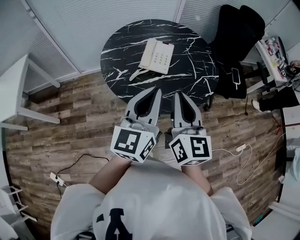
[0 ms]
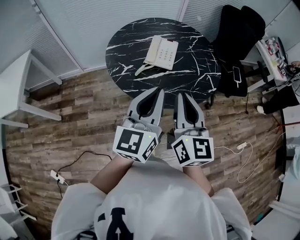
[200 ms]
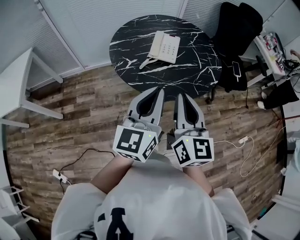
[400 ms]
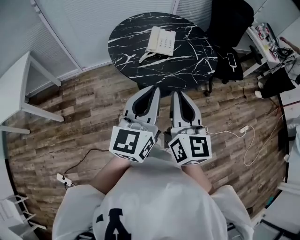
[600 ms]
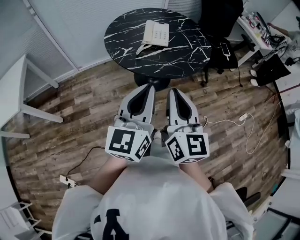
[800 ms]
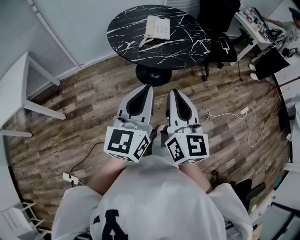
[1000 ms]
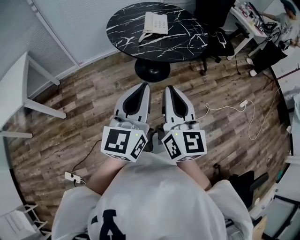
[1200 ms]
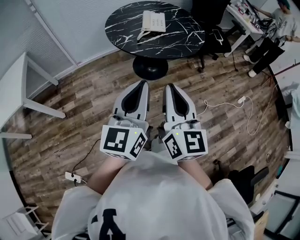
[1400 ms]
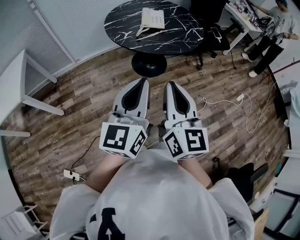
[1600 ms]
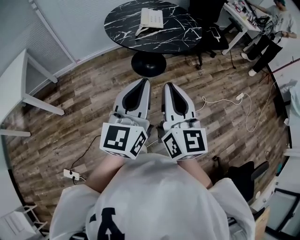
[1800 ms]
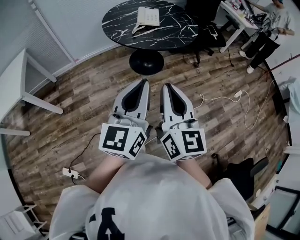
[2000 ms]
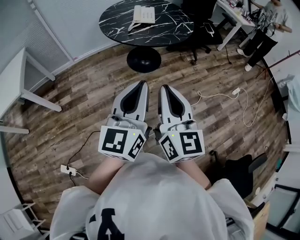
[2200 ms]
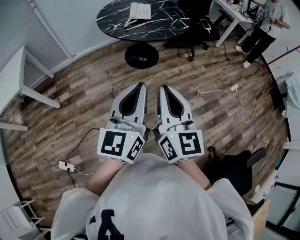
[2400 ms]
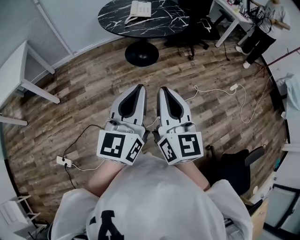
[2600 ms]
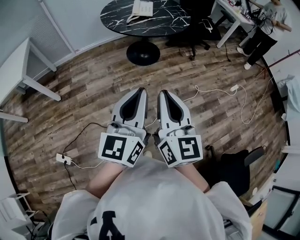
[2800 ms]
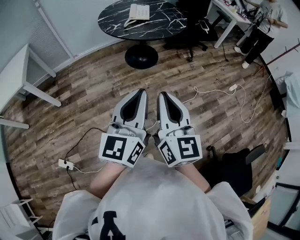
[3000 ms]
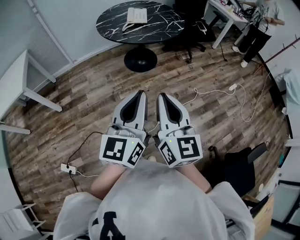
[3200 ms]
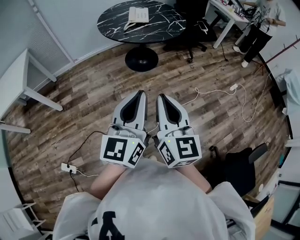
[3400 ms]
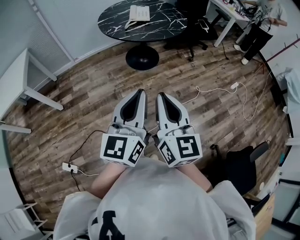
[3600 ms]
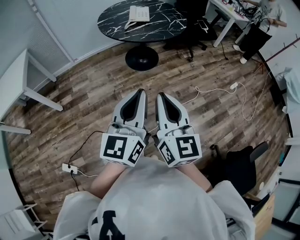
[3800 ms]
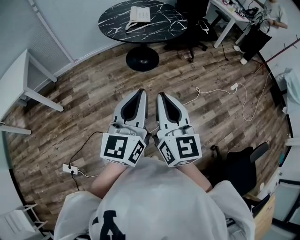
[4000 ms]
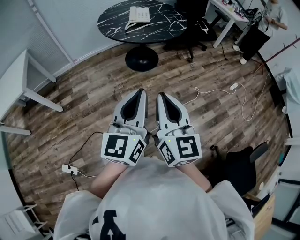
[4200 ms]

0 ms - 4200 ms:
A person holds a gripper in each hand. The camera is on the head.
0 ms - 1400 ms: Both grippers travel together backward, roughly 35 cm.
1400 ms - 2800 ms: Both grippers move backward and to the right, roughly 25 cm.
2800 ms - 4200 ms: The grippers move only a little.

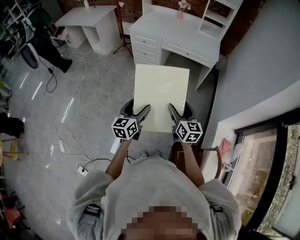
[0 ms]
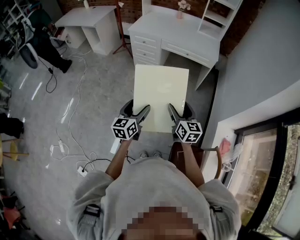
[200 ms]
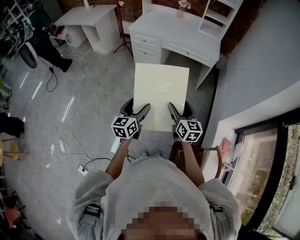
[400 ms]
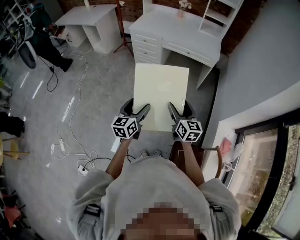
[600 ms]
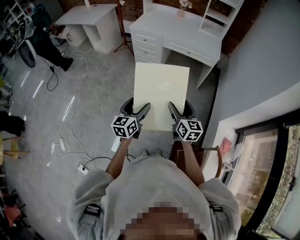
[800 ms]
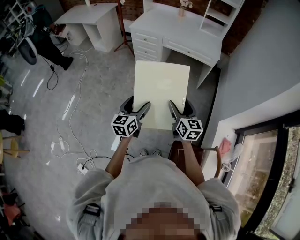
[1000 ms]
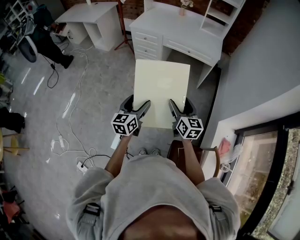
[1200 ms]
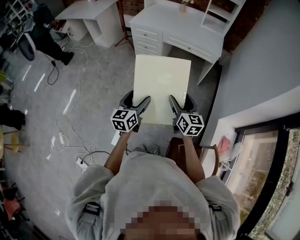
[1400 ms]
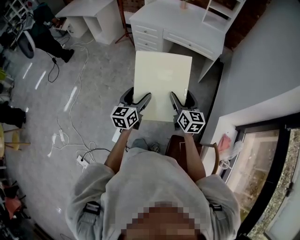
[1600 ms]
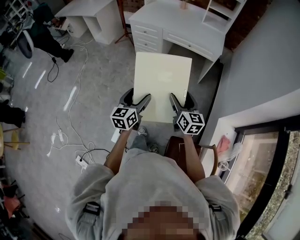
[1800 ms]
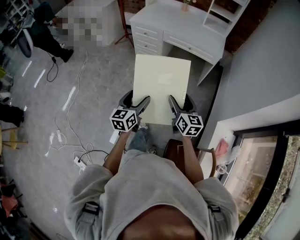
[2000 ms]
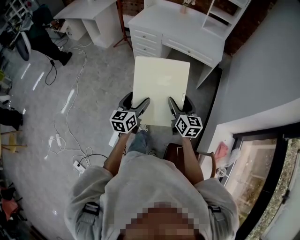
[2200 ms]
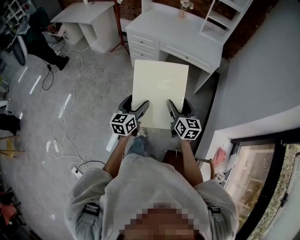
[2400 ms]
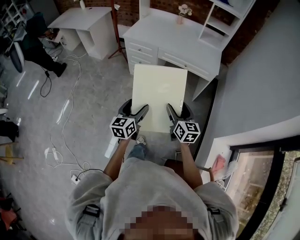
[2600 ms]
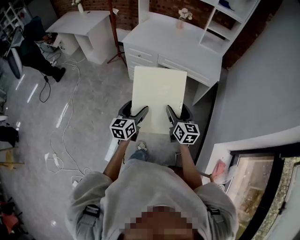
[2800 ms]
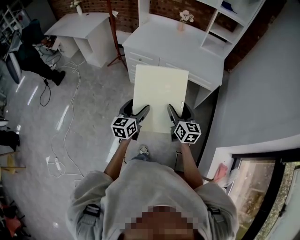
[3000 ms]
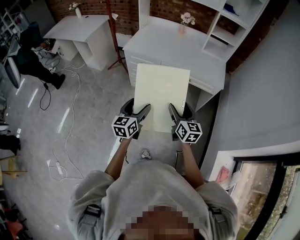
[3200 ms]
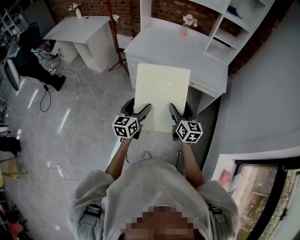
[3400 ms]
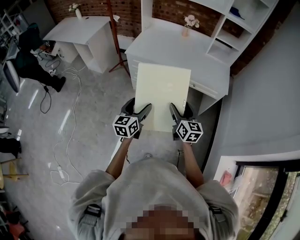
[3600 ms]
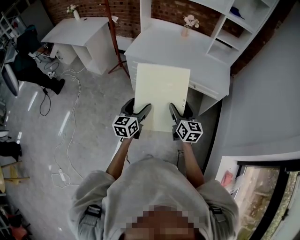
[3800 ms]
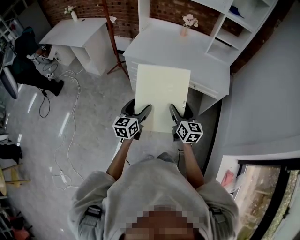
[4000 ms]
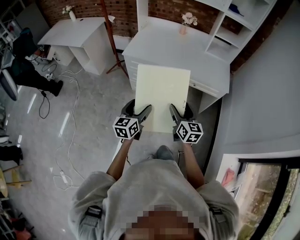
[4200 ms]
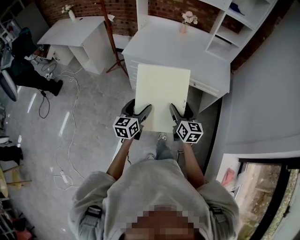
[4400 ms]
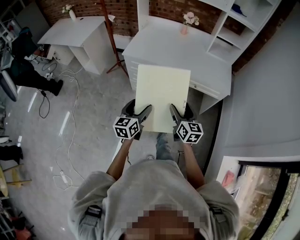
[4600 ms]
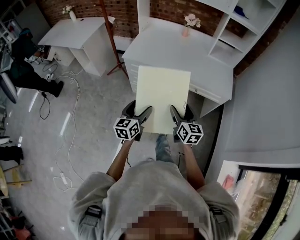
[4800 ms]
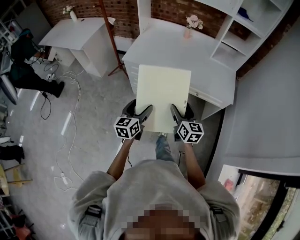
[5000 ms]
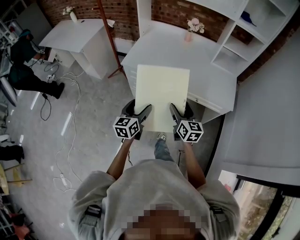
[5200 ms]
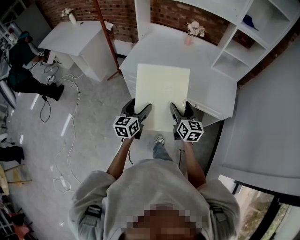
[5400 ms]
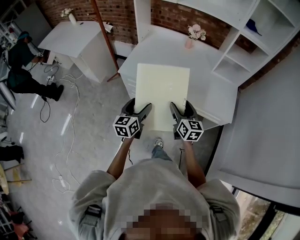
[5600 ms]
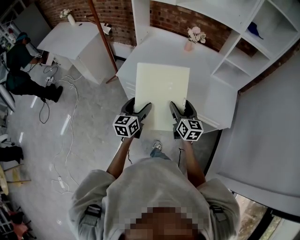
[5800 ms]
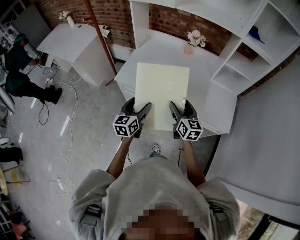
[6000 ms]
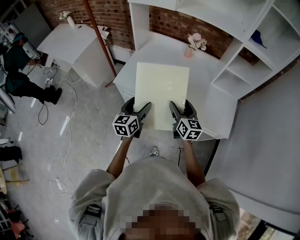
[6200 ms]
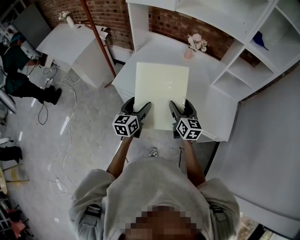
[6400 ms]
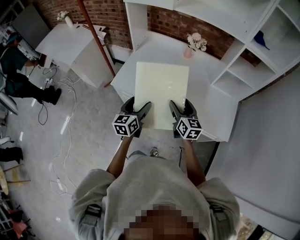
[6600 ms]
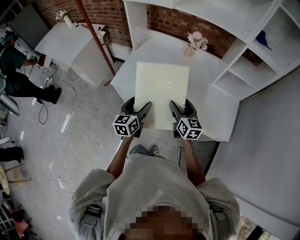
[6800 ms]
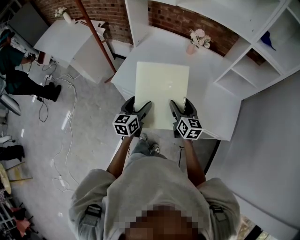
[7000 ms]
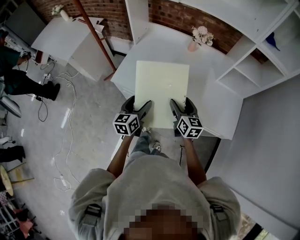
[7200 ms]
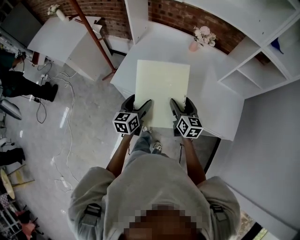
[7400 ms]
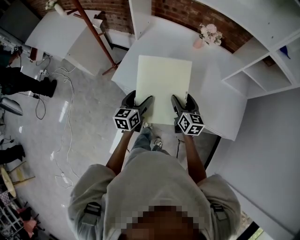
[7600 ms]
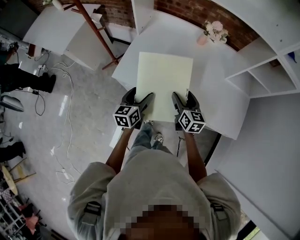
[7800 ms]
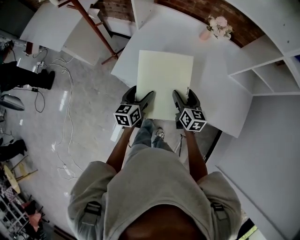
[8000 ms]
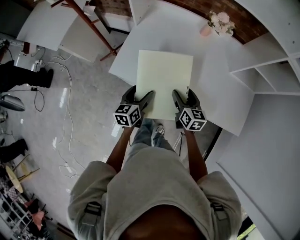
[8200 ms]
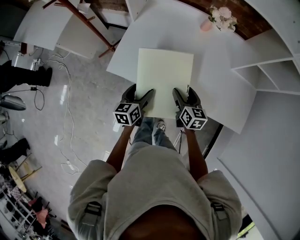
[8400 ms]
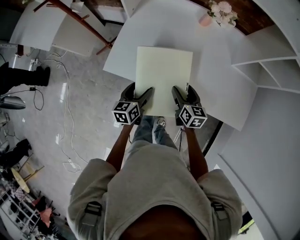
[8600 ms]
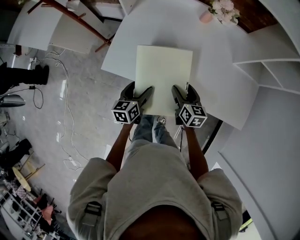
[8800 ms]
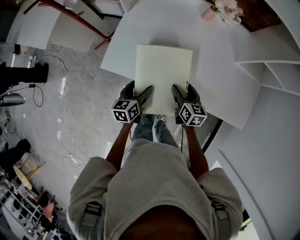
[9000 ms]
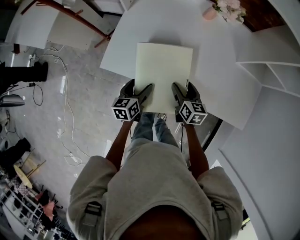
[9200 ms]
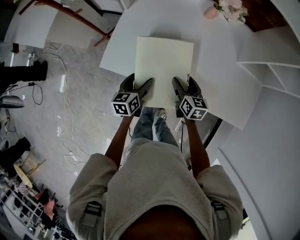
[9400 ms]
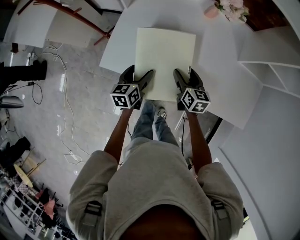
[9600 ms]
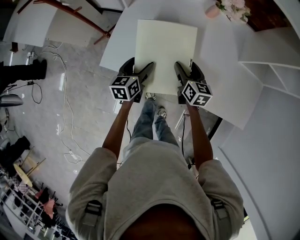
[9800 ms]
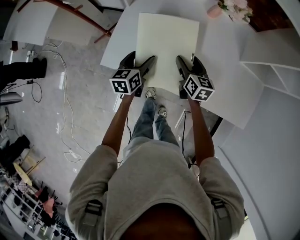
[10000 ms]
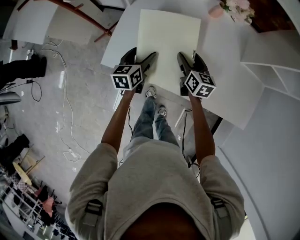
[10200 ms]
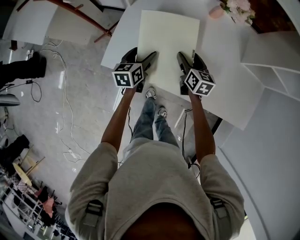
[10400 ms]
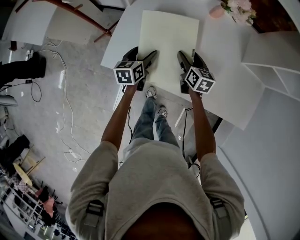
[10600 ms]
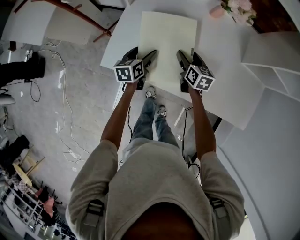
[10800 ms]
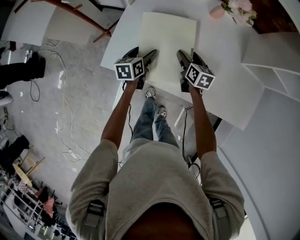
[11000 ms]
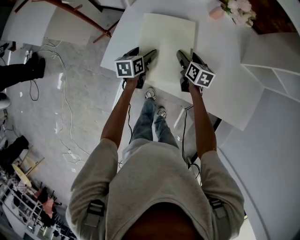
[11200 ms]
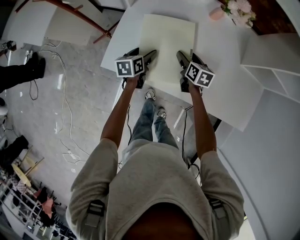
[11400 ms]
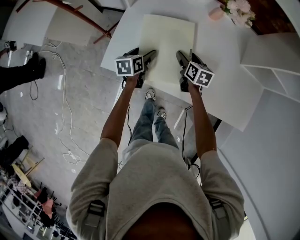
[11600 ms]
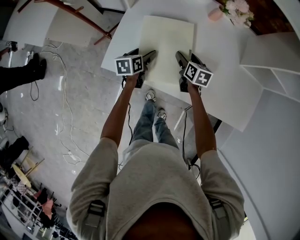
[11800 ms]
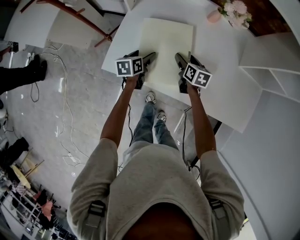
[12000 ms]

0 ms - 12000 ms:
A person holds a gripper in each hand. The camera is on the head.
0 ms - 1600 ms: The right gripper changes place by approximately 5 cm.
1600 ms - 3000 ms: Both grippers travel together forward, about 25 cm.
3000 ms - 4400 ms: The two grippers go roughly 15 cm forward and to the left.
4400 ms - 6000 ms: Both grippers travel together forward, about 30 cm.
6000 ms - 7600 ms: Both grippers travel together forward and downward, some 15 cm.
7600 ms - 9000 ms: The grippers both shift downward by about 10 cm.
9000 ms - 10400 ms: The grippers both shift forward by approximately 15 cm.
10400 ms - 12000 ms: The grippers make only small movements.

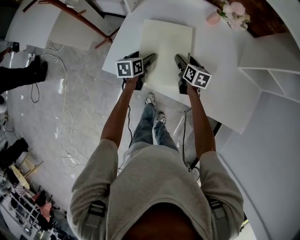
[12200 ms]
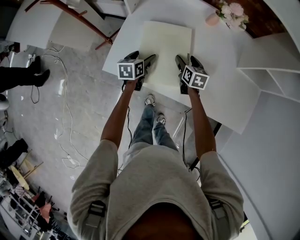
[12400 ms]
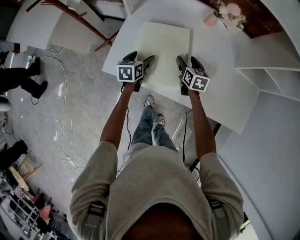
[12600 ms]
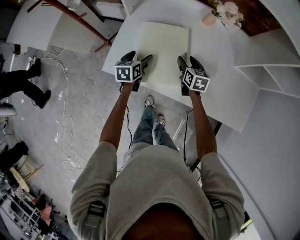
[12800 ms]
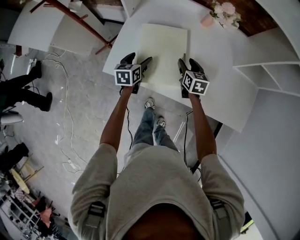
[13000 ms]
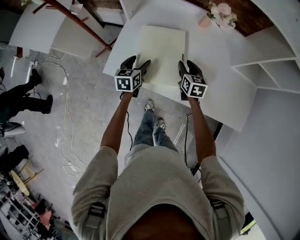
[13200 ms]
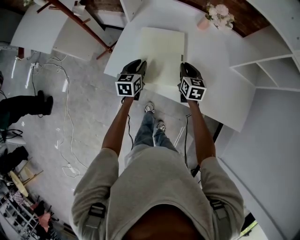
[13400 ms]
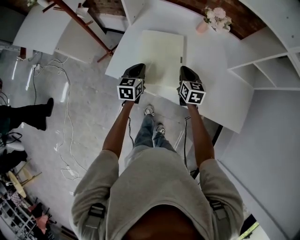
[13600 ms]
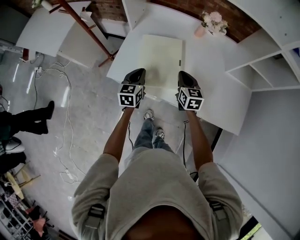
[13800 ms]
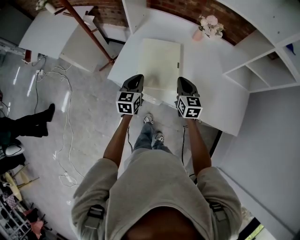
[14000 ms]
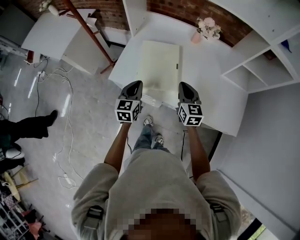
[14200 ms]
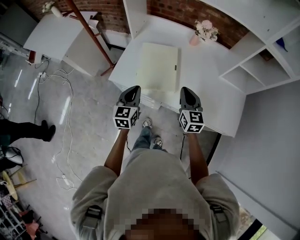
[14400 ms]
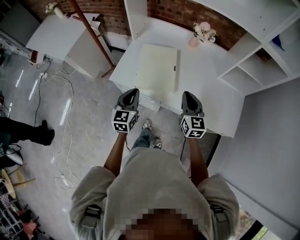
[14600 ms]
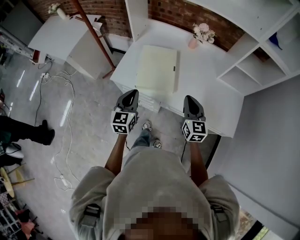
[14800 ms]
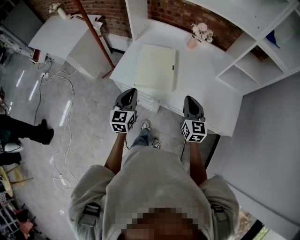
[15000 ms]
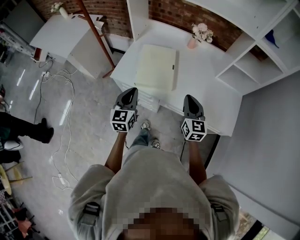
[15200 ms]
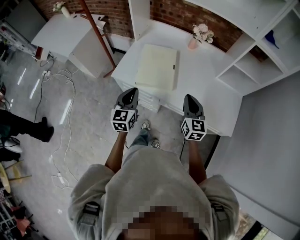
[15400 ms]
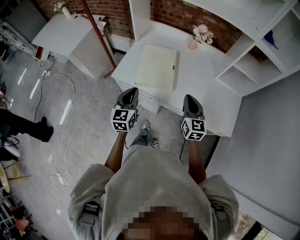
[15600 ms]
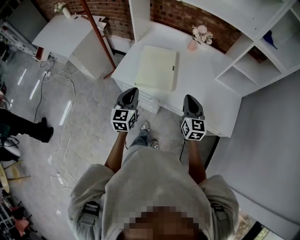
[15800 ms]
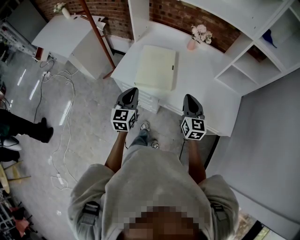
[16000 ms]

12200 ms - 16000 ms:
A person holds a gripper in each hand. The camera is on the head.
12200 ms - 13400 ms: Both grippers move upward, about 10 cm. The right gripper closes its fingers. The left gripper changes its angle by roughly 20 degrees, and closes.
13400 ms - 14800 ms: The two grippers go about 25 cm backward and upward. The right gripper changes its angle by roughly 20 degrees. The left gripper changes its angle by some 20 degrees.
14800 ms - 16000 ms: The grippers make only small movements.

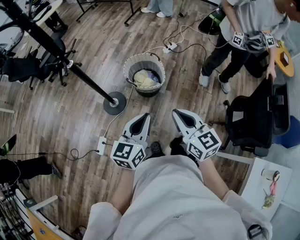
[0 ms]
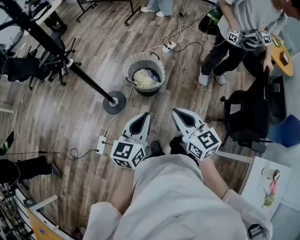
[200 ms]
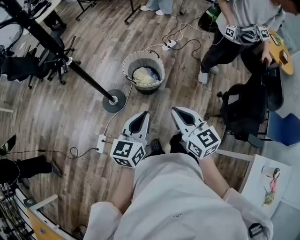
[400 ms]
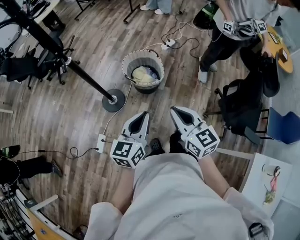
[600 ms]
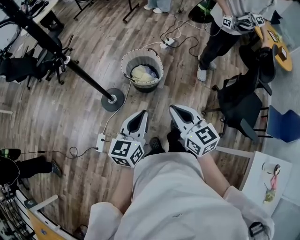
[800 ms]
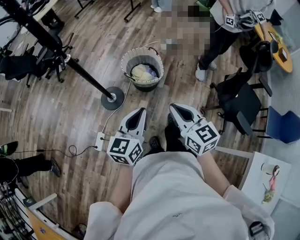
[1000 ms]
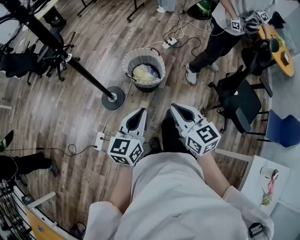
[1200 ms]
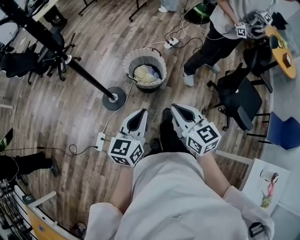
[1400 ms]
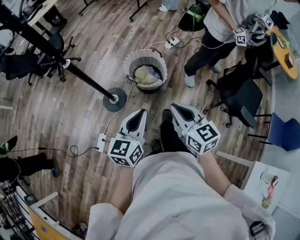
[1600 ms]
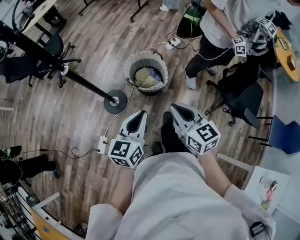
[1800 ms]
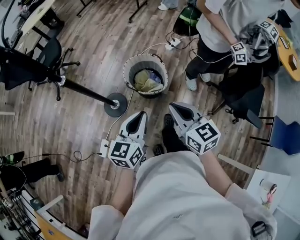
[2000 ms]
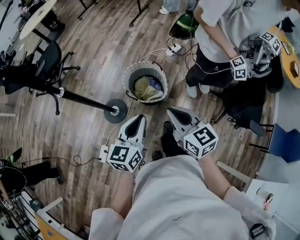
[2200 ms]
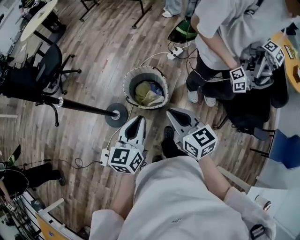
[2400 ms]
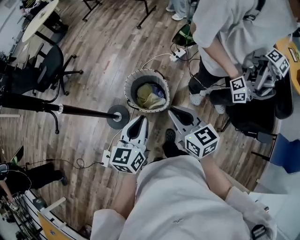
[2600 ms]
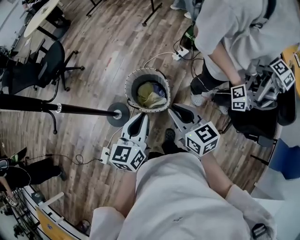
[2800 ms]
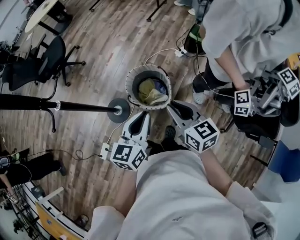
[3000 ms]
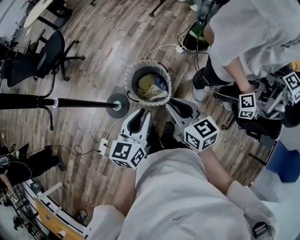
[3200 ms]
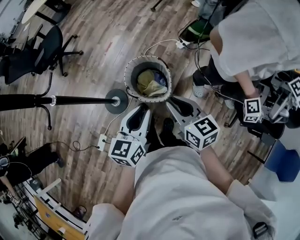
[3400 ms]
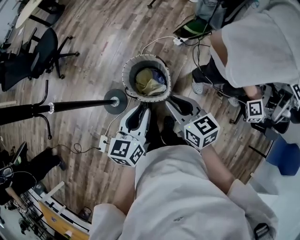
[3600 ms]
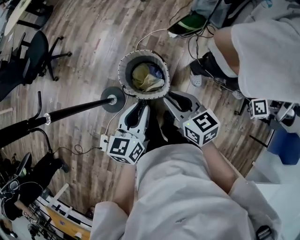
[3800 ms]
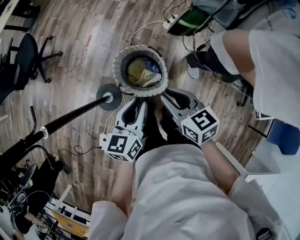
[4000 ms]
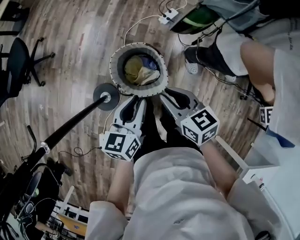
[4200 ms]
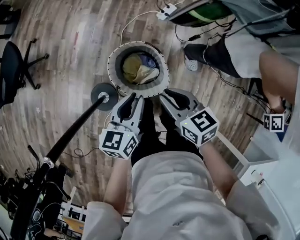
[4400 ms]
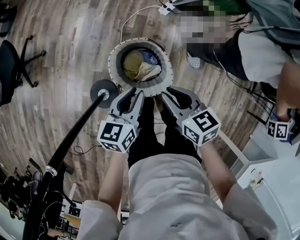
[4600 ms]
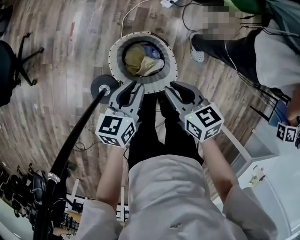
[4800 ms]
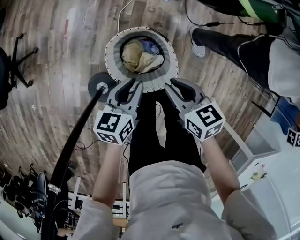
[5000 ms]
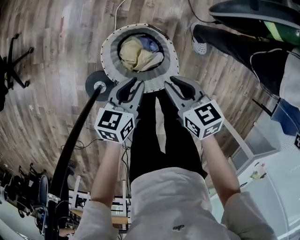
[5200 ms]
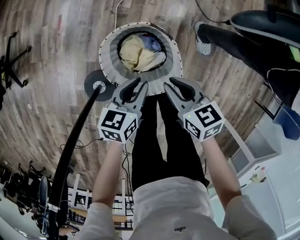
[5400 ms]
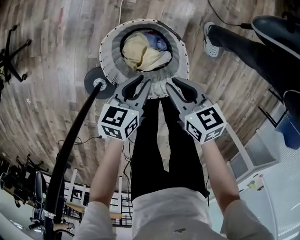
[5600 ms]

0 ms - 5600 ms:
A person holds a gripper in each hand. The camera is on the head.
0 ms - 1400 ms: The grippers move only a little.
1400 ms - 2800 ms: The two grippers go roughly 25 cm forward.
2800 ms - 4200 ms: Both grippers move forward and downward, approximately 20 cm.
4200 ms - 5600 ms: Both grippers move downward, roughly 30 cm. The left gripper changes its angle by about 20 degrees.
